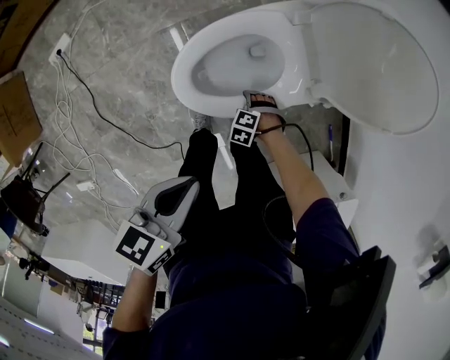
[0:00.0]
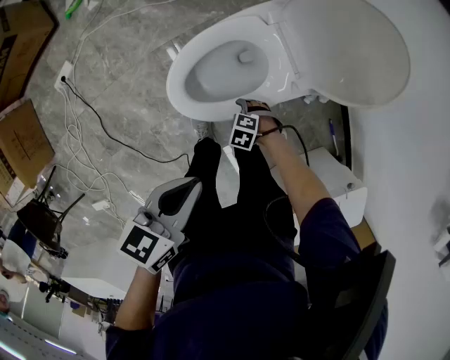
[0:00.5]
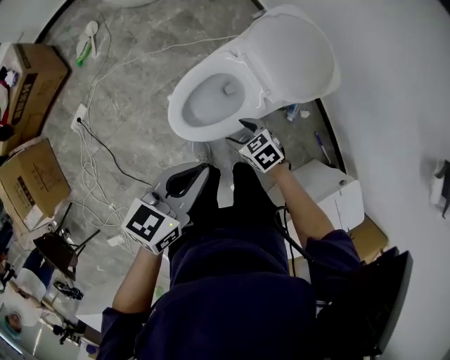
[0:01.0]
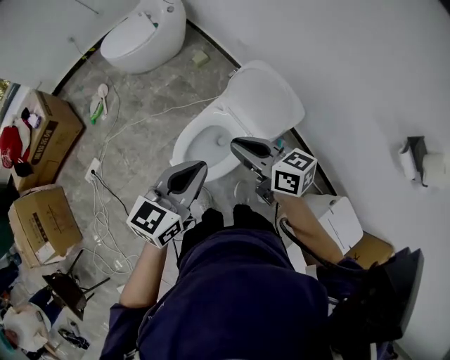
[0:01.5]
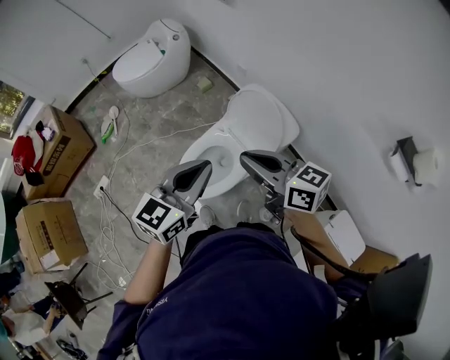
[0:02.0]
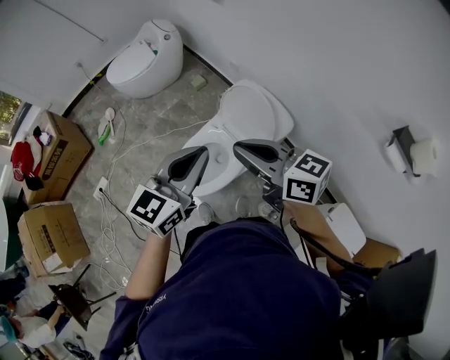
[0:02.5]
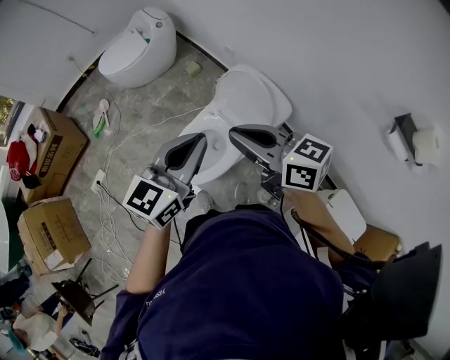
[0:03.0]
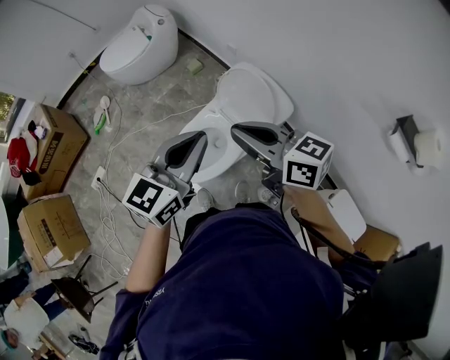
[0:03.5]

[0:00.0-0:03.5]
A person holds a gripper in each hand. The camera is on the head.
0:00.0 to 0:02.0: The right gripper is displaced upward by about 80 cm, tilts its fingers roughly 70 degrees upward, and closes its fingers. Meanwhile the left gripper shifts some 40 cm upward, and tips its fingers upward by some 30 degrees.
0:02.0 to 0:03.5: The grippers make only small movements.

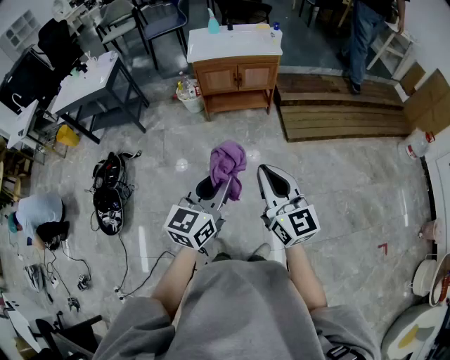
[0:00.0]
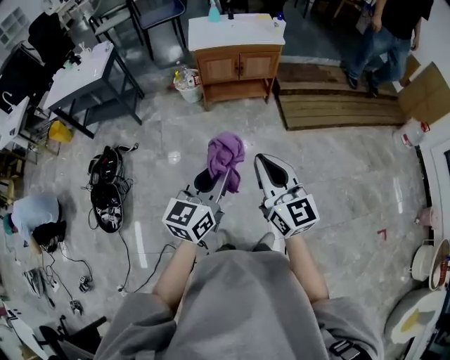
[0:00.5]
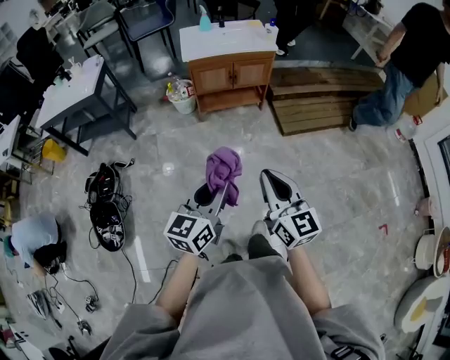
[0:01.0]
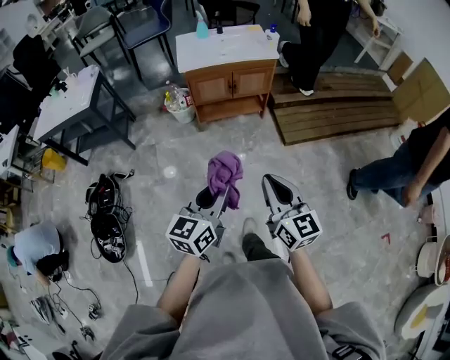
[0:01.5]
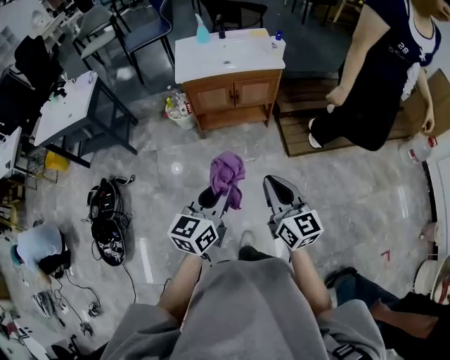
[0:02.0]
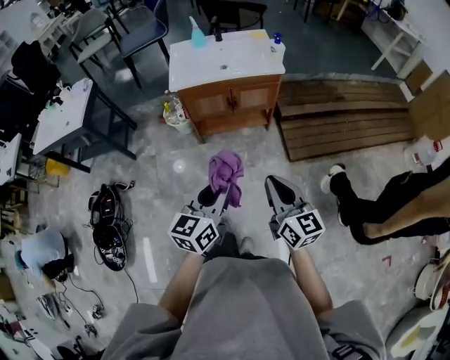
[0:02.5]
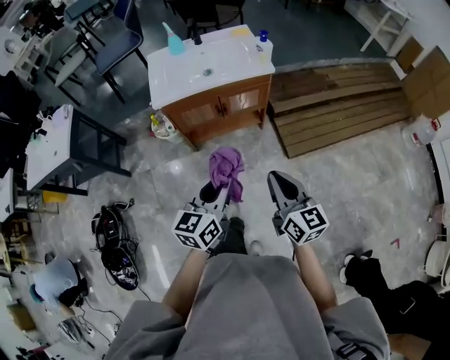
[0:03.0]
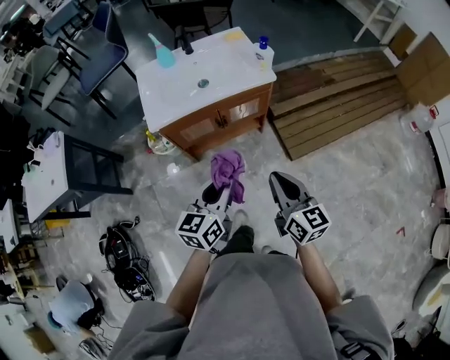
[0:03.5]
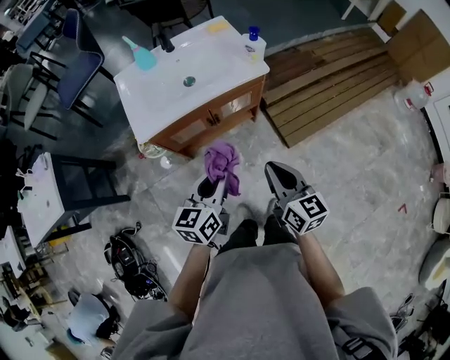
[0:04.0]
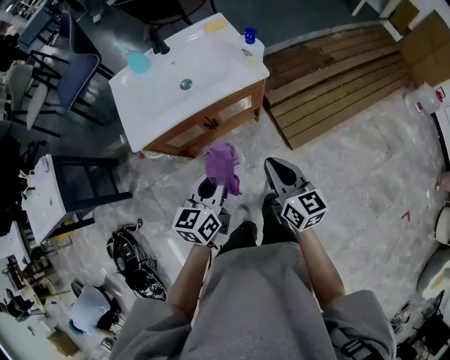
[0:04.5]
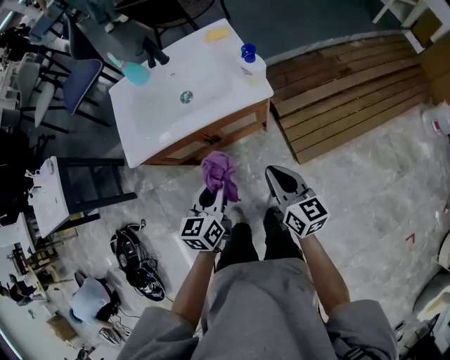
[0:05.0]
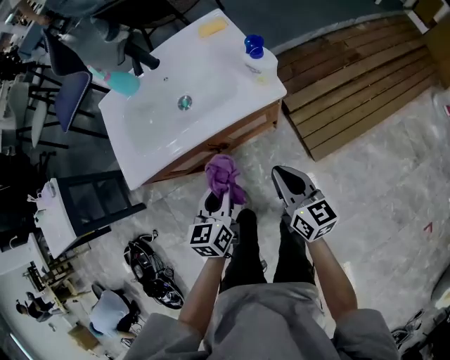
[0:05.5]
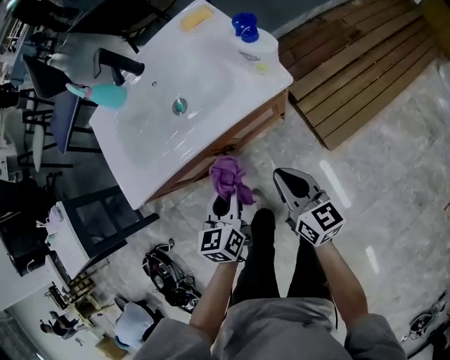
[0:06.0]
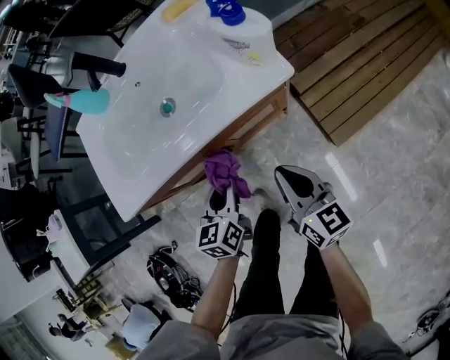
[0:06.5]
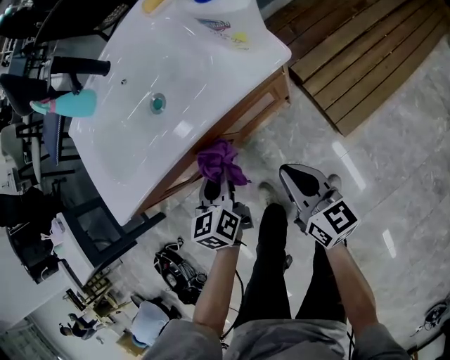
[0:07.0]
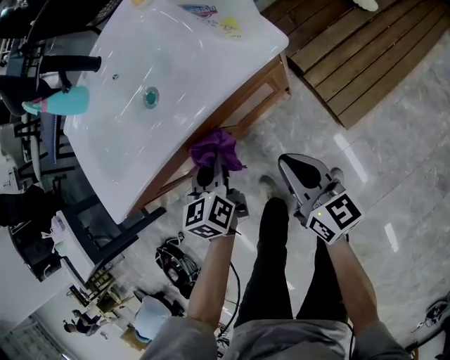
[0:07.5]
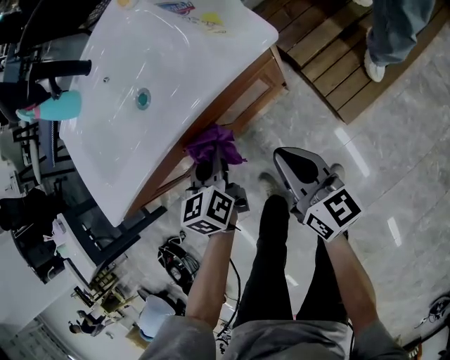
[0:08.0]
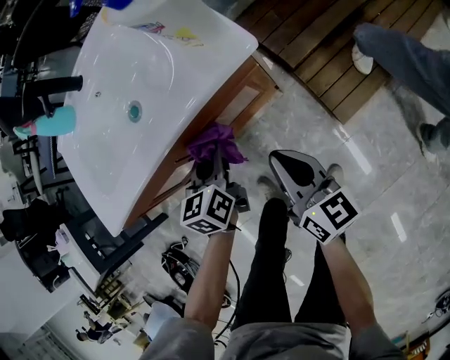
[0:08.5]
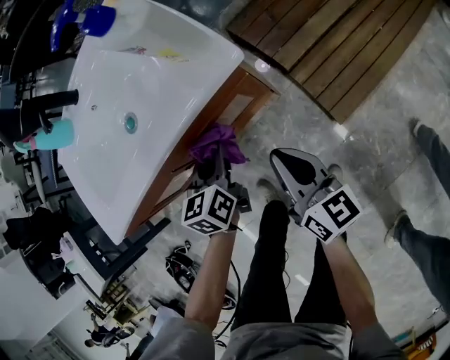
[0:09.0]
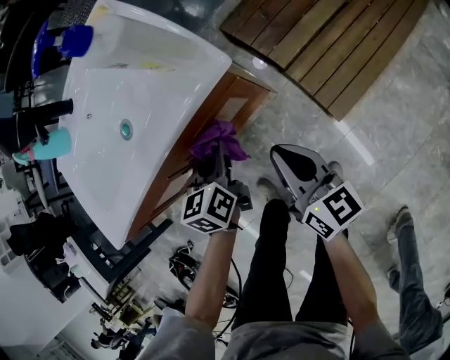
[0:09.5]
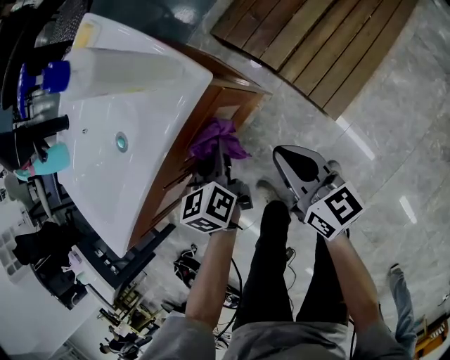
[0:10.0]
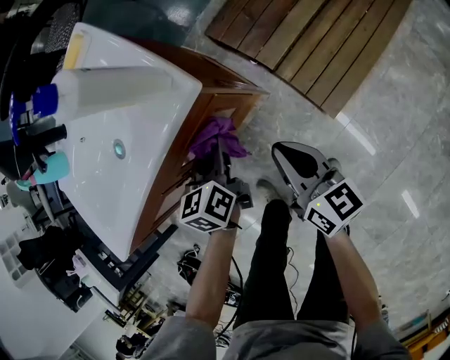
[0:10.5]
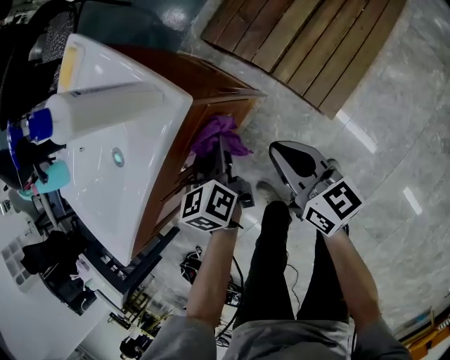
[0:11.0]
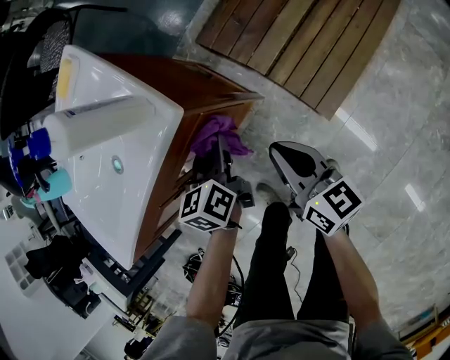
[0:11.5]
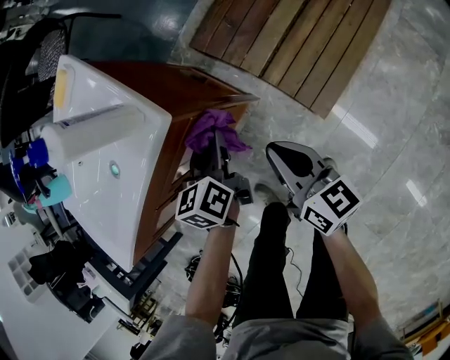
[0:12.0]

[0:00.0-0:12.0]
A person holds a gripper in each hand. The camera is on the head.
0:00.0 to 0:02.0: Both grippers move forward, roughly 20 cm.
0:02.0 to 0:04.0: Both grippers travel together forward, approximately 35 cm.
0:04.0 to 0:06.0: Both grippers move downward and forward, approximately 30 cm.
0:06.0 to 0:08.0: The right gripper is displaced downward by some 10 cm. The left gripper travels downward and forward by some 15 cm.
0:08.0 to 0:10.0: Both grippers travel together to the right, about 10 cm.
0:10.0 to 0:12.0: Both grippers move to the right, roughly 5 cm.

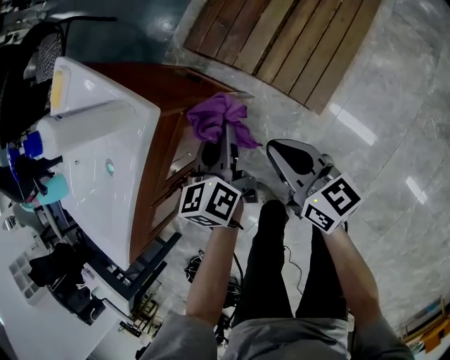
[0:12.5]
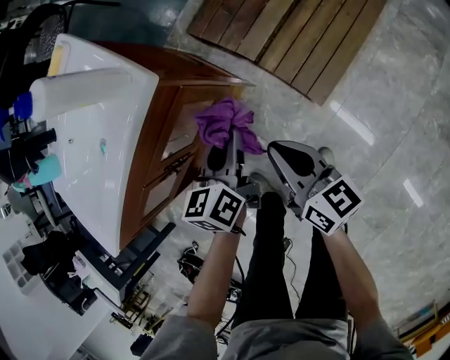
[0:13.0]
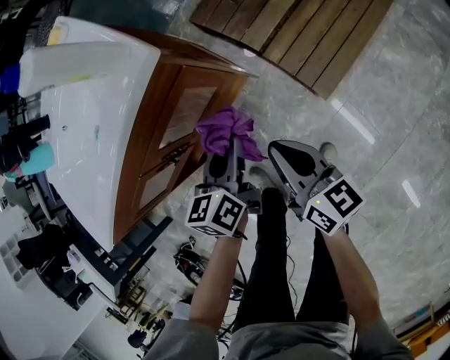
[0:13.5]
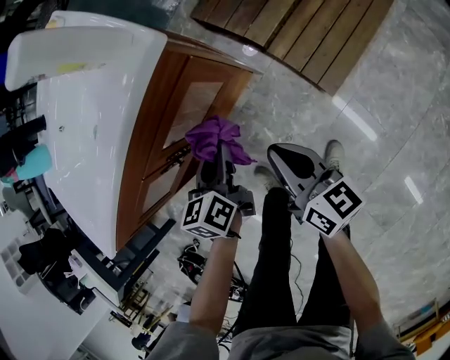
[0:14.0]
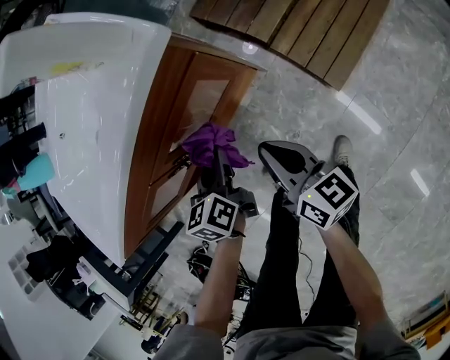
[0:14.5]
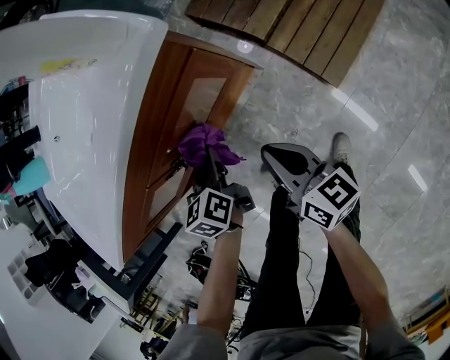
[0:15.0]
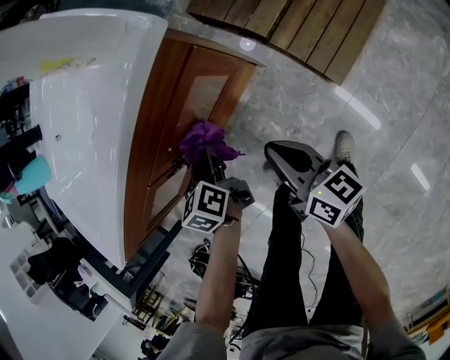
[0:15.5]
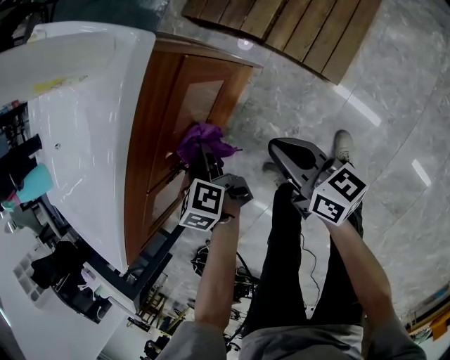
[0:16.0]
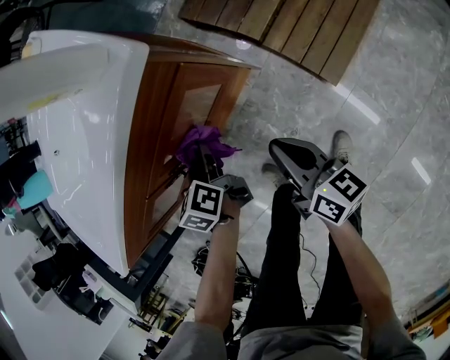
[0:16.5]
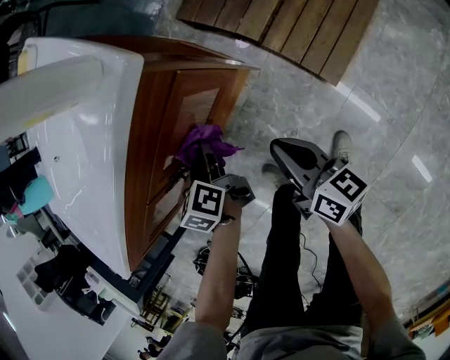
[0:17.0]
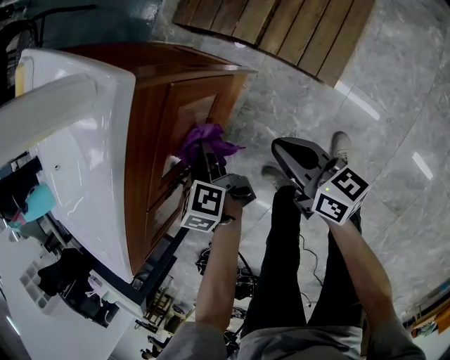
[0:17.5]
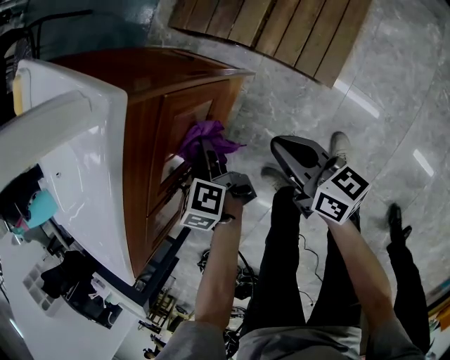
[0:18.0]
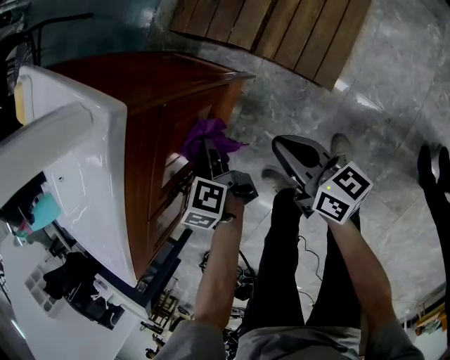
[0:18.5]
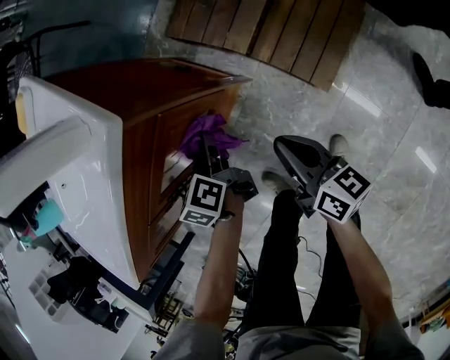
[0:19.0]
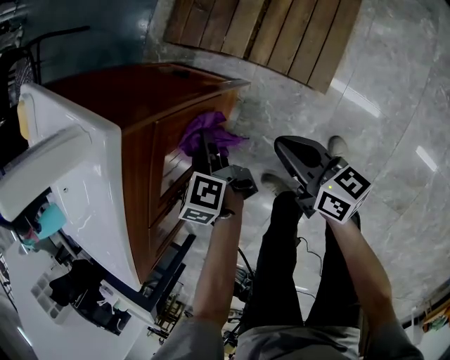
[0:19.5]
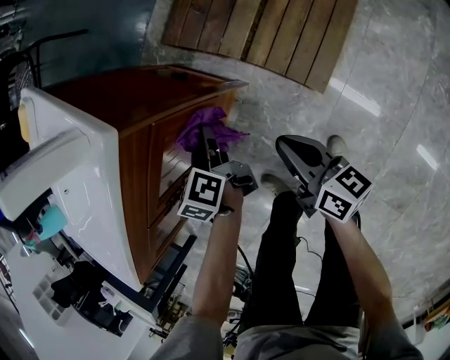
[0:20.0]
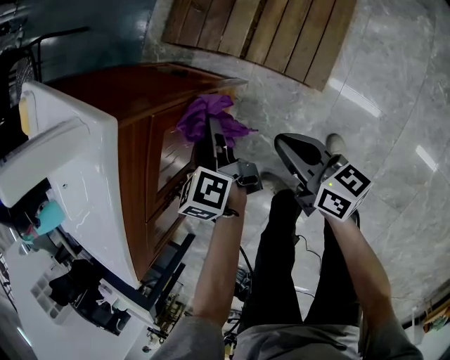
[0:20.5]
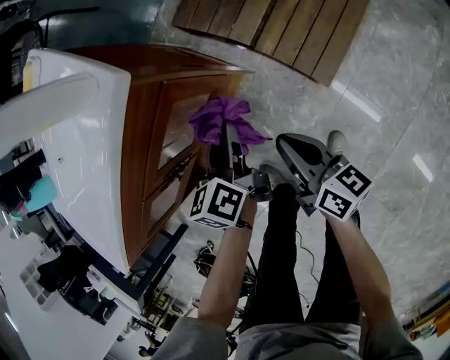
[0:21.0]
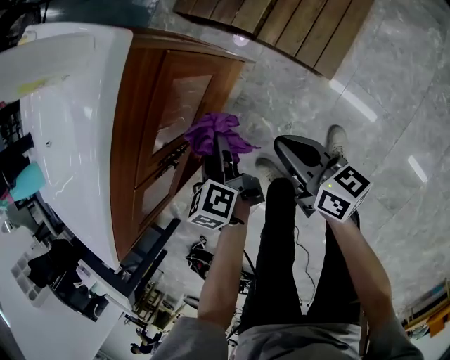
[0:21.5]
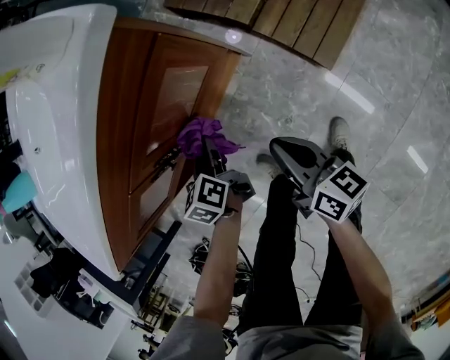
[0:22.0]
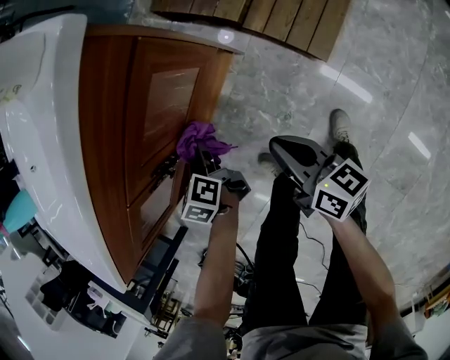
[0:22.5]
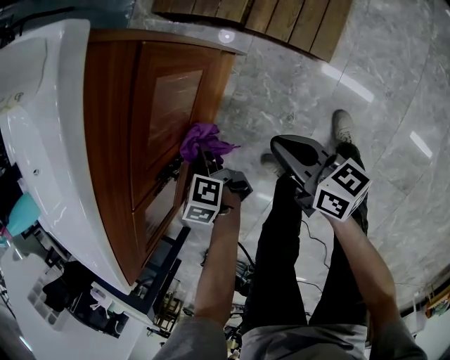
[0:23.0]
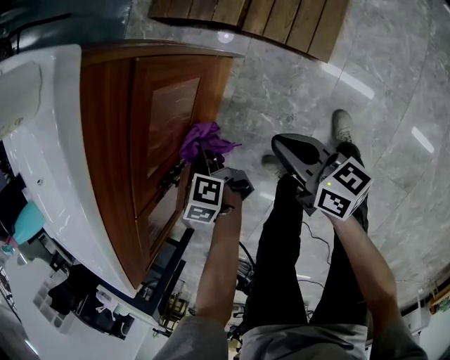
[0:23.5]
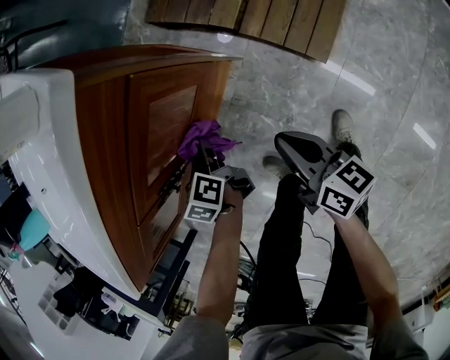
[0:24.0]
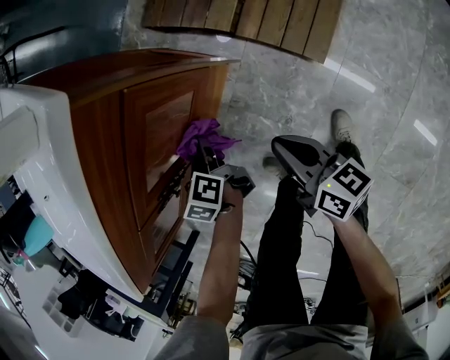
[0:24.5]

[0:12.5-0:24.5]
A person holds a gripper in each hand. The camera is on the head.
0:12.5 to 0:14.5: The left gripper heads to the left, backward and downward, covering some 20 cm. The right gripper heads to the left and downward, covering some 15 cm.
0:14.5 to 0:16.5: The left gripper moves about 5 cm.
0:16.5 to 0:18.5: The grippers both shift to the right by some 5 cm.
0:18.5 to 0:20.5: The left gripper travels to the right by roughly 10 cm.
0:20.5 to 0:22.5: The right gripper is displaced to the left and backward by approximately 15 cm; the left gripper is displaced to the left and downward by about 25 cm.
0:22.5 to 0:24.5: The left gripper is displaced to the right by some 5 cm.
